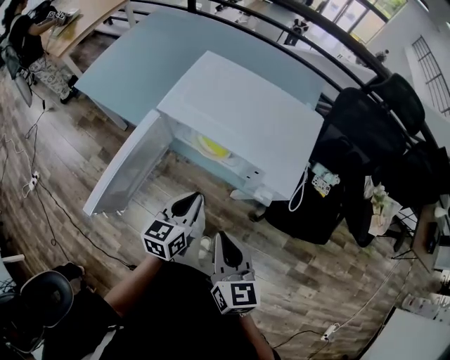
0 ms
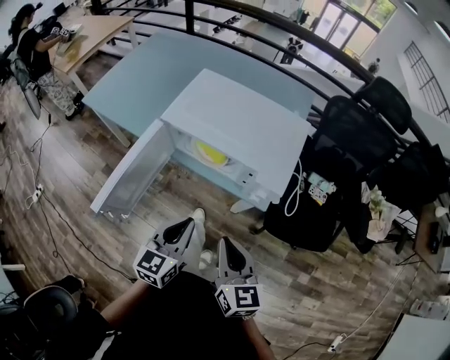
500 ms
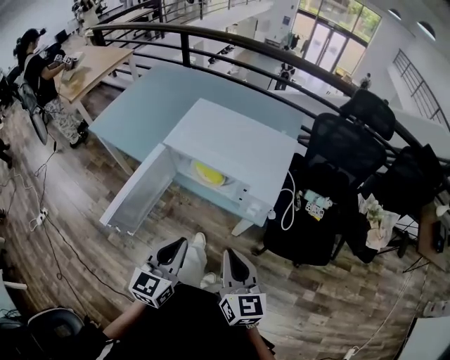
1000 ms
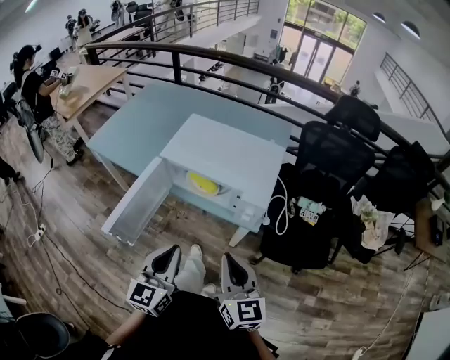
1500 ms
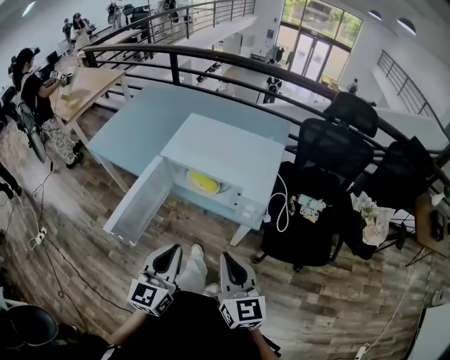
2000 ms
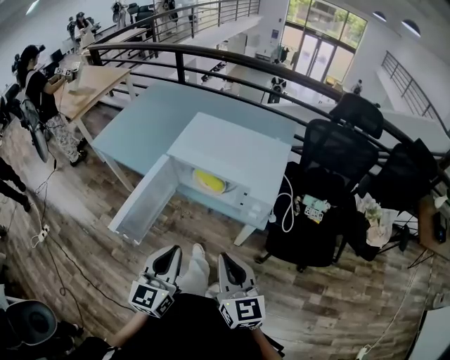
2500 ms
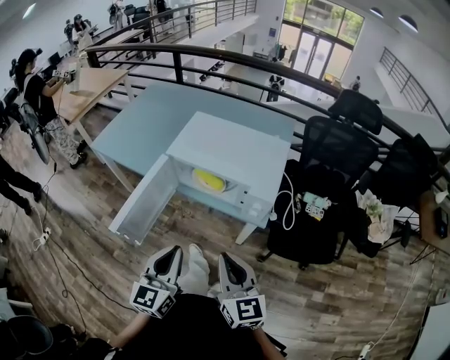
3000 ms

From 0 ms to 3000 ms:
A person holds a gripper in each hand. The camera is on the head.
From 0 ms to 1500 ms: The left gripper is displaced upward and backward by some 20 cm, and turns by about 20 degrees; the right gripper goes roughly 10 cm upward and backward.
From 1500 ms to 3000 ms: The grippers move only a little.

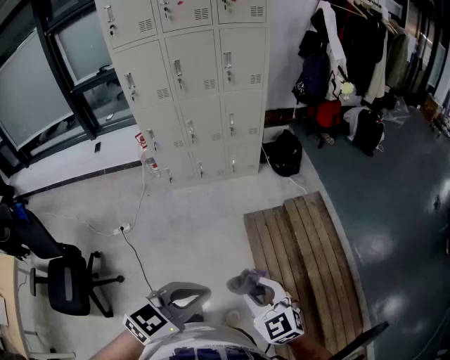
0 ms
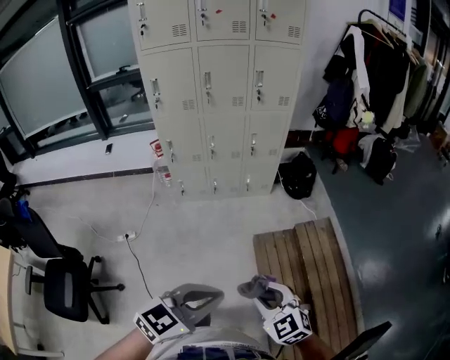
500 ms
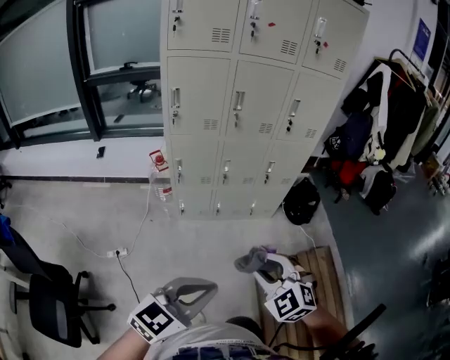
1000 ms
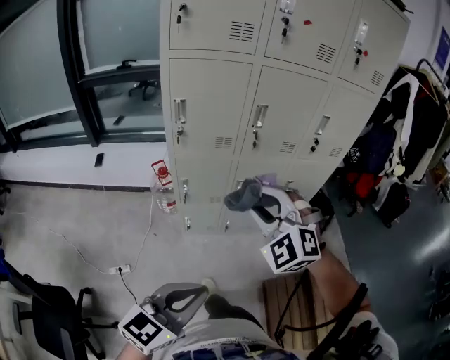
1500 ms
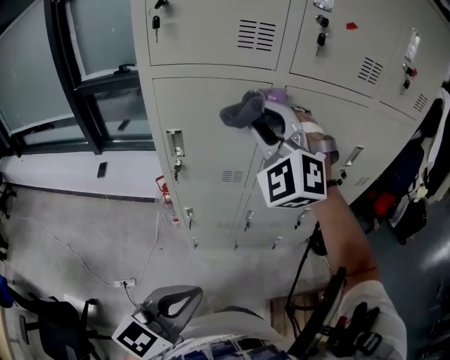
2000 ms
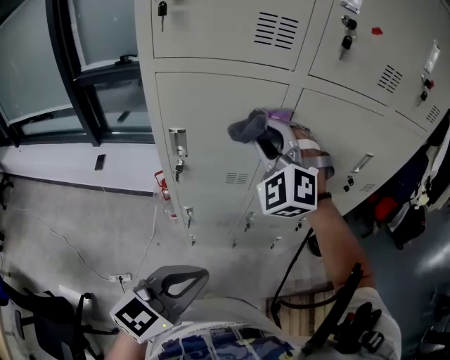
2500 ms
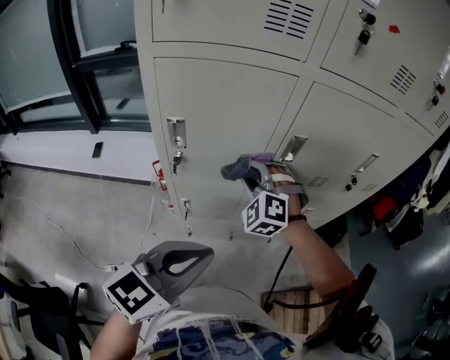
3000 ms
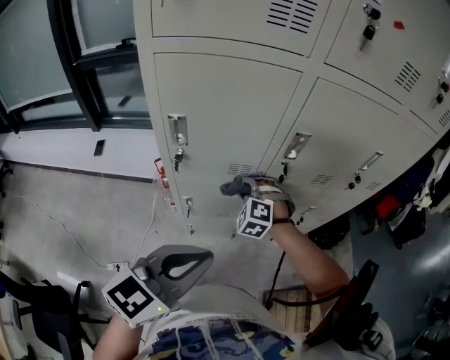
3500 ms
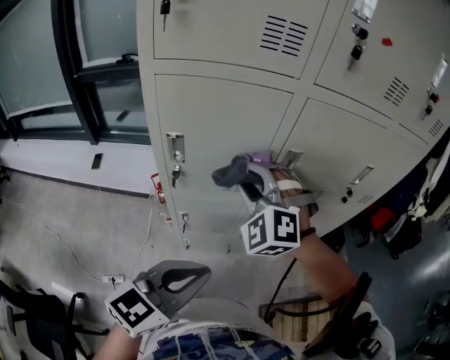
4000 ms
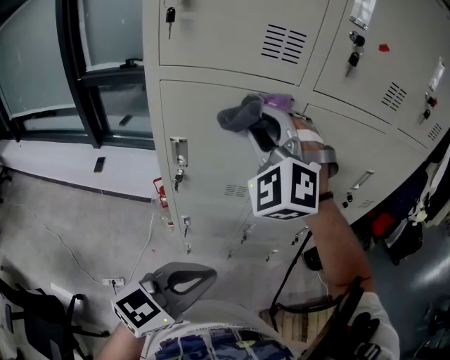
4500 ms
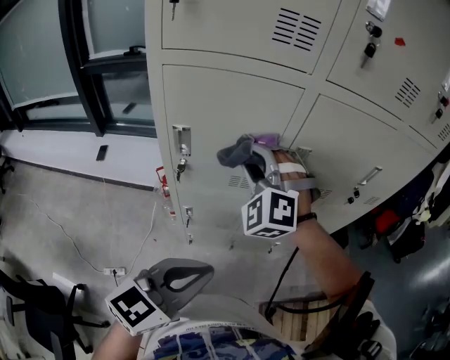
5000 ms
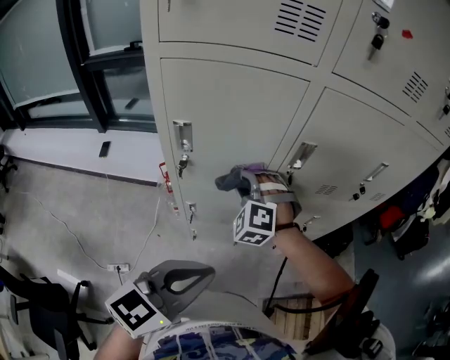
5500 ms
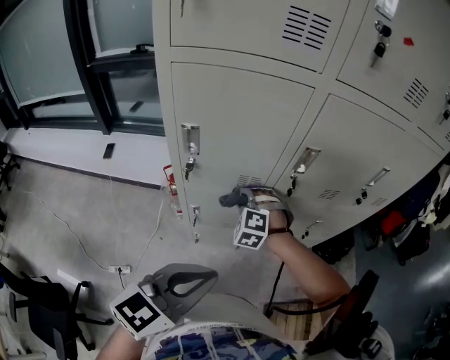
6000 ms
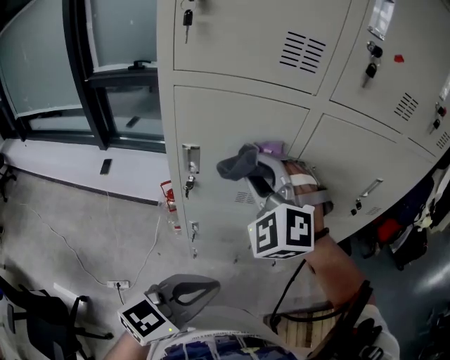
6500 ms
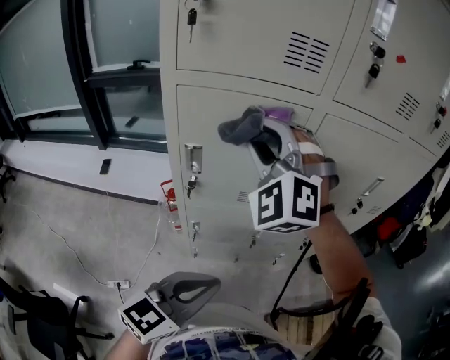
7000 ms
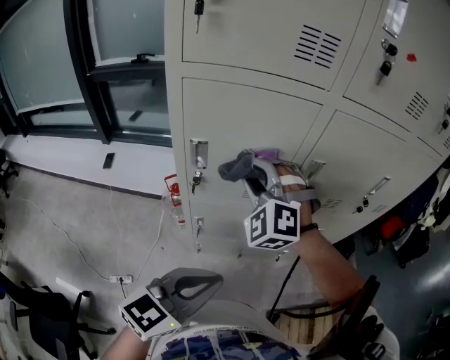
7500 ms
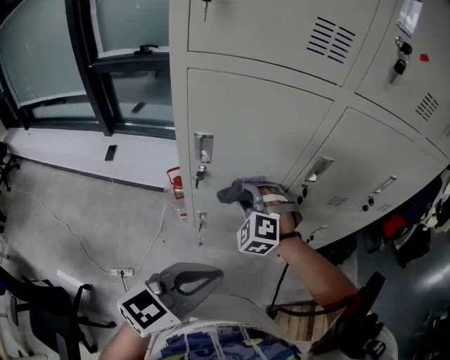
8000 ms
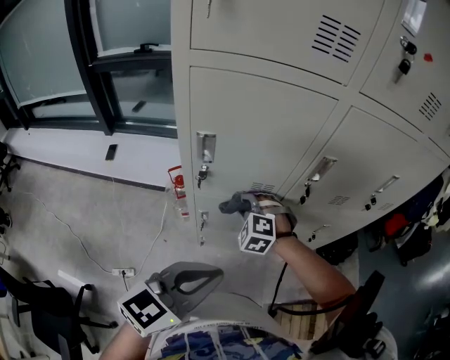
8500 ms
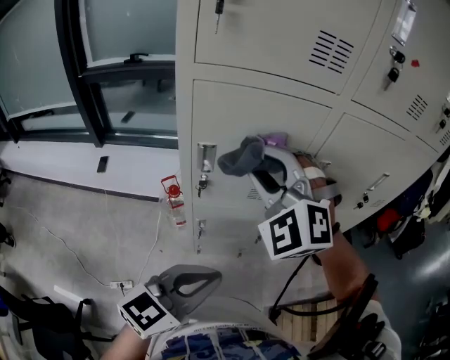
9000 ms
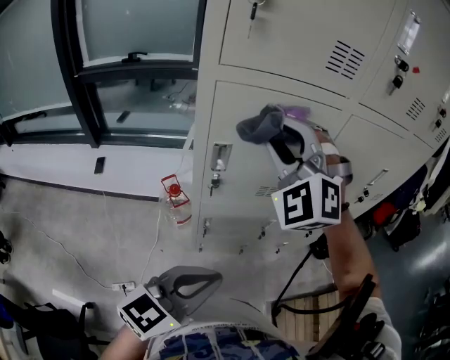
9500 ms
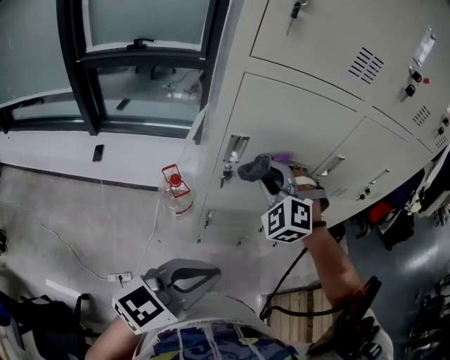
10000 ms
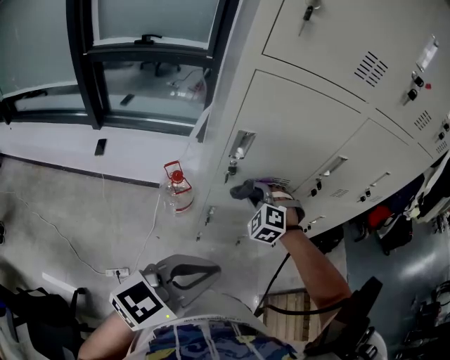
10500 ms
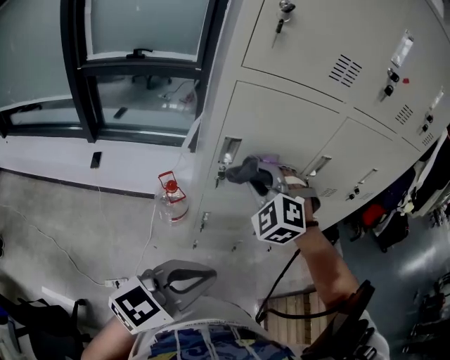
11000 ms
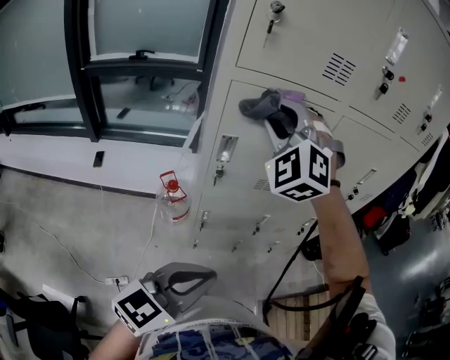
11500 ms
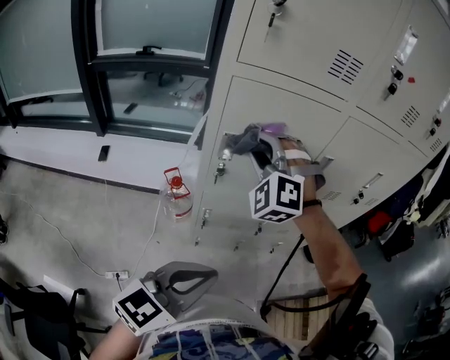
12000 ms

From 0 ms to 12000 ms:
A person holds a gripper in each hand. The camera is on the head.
From 0 ms to 2000 ms: The two grippers travel together, forward and to the left, some 80 cm. The right gripper heads upward, covering approximately 35 cm, and rolls counterclockwise, seen from behind, by about 60 degrees. Meanwhile the left gripper changes its angle by approximately 30 degrees.
From 2000 ms to 4000 ms: The left gripper goes some 10 cm forward, while the right gripper shifts some 15 cm downward.
From 4000 ms to 6000 ms: The right gripper moves downward, approximately 25 cm, and swivels about 20 degrees.
From 6000 ms to 8000 ms: The right gripper travels upward and back again, approximately 35 cm each way.
From 8000 ms to 10000 ms: The left gripper moves to the left, about 10 cm; the right gripper goes up and down, approximately 35 cm each way, reversing 2 times.
From 10000 ms to 12000 ms: The right gripper moves up and down over approximately 35 cm, changing direction 2 times.

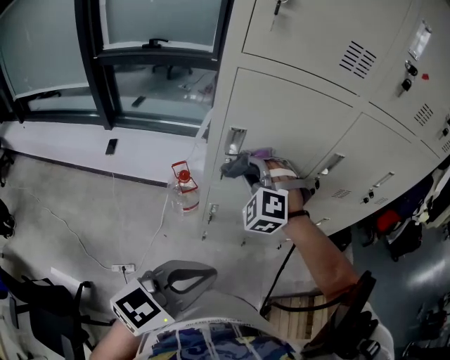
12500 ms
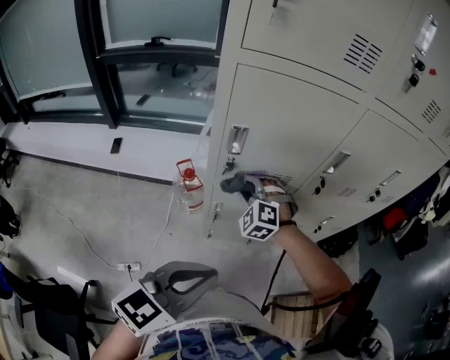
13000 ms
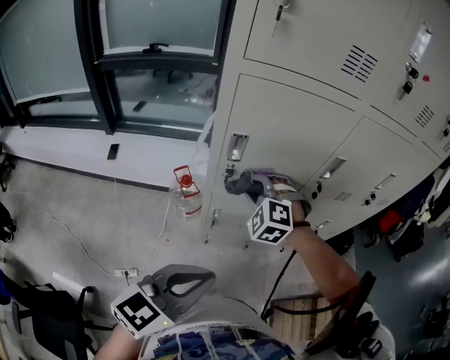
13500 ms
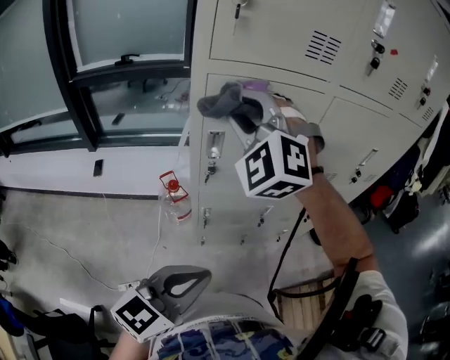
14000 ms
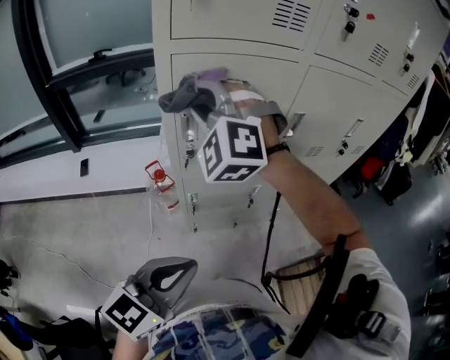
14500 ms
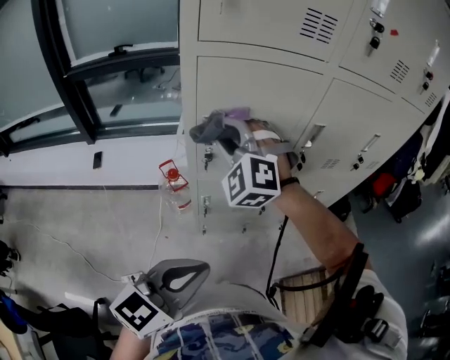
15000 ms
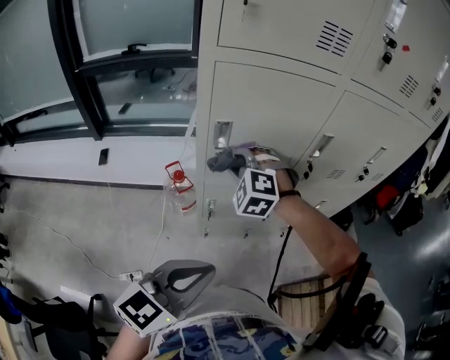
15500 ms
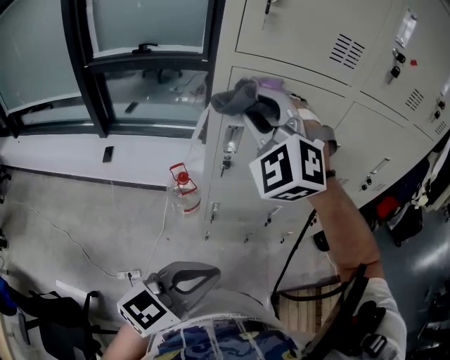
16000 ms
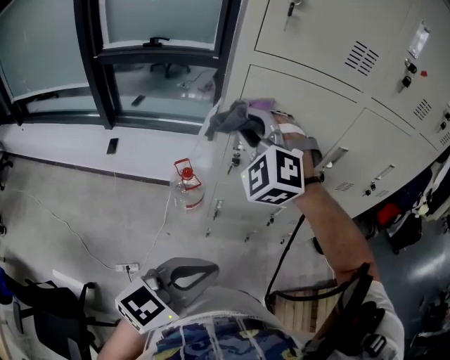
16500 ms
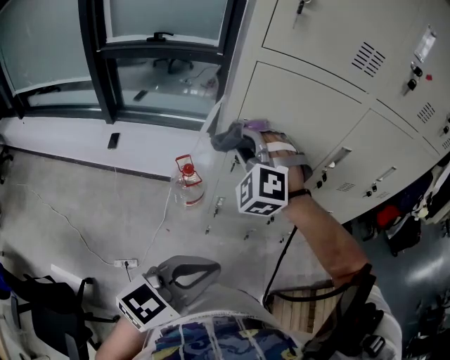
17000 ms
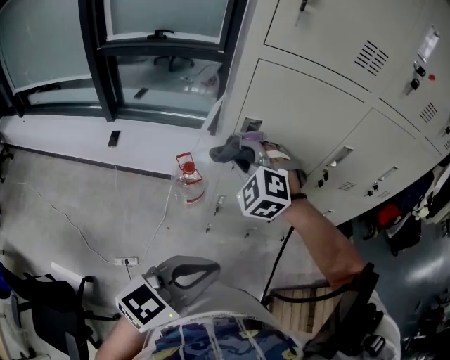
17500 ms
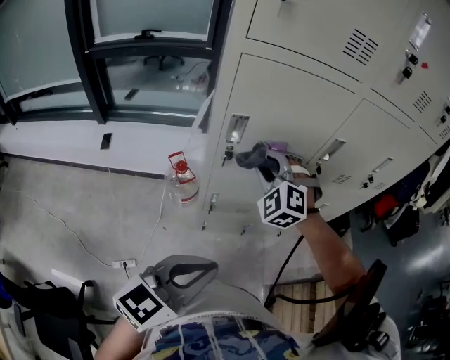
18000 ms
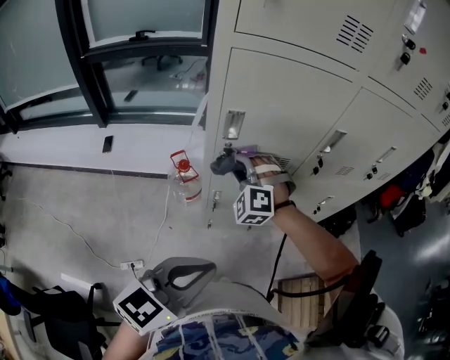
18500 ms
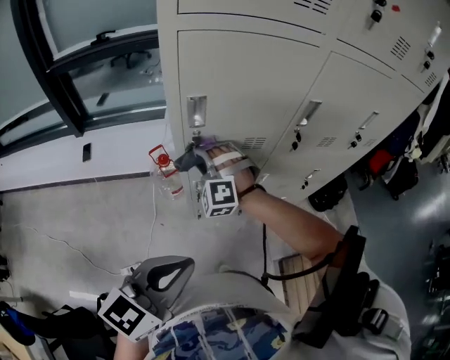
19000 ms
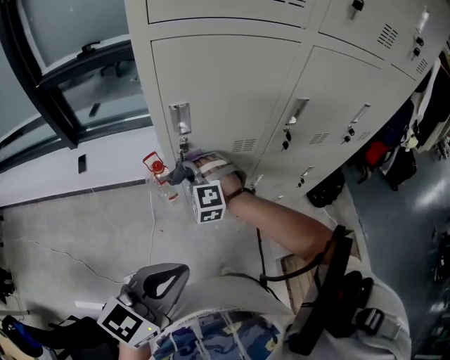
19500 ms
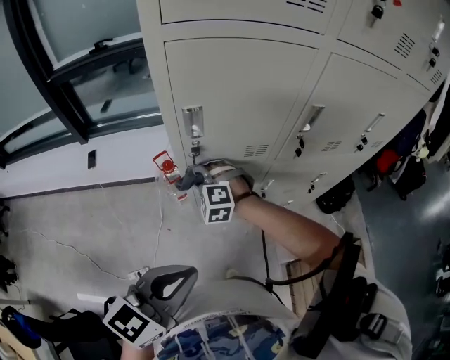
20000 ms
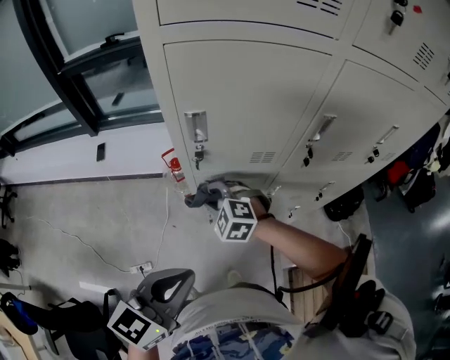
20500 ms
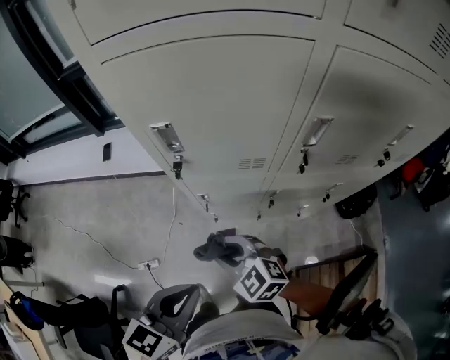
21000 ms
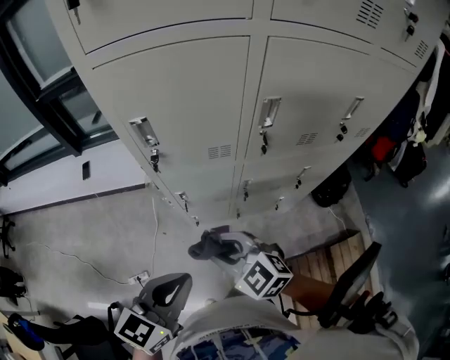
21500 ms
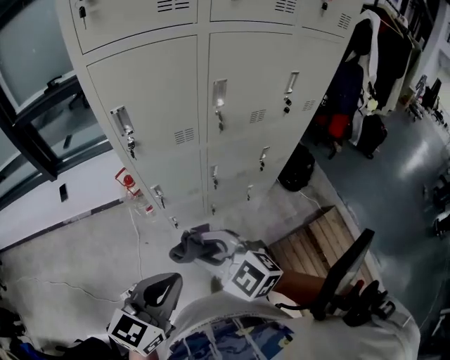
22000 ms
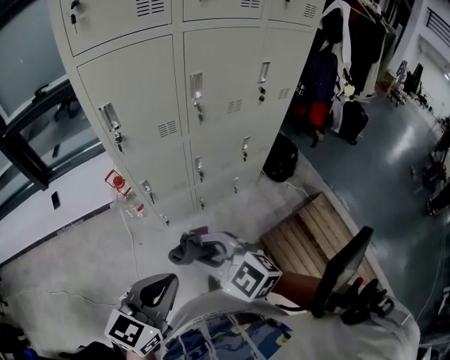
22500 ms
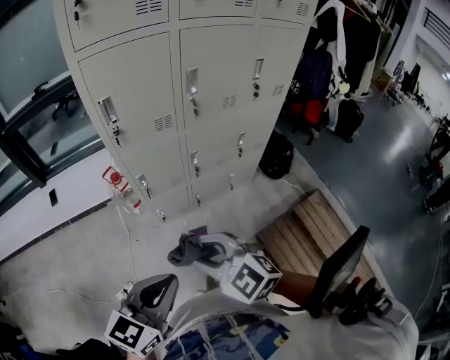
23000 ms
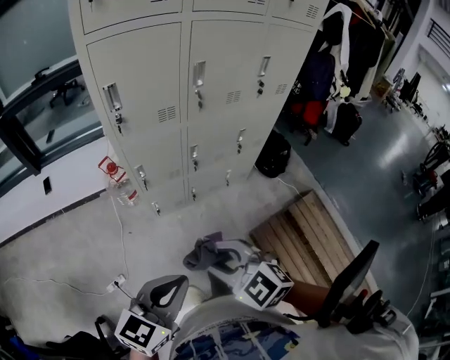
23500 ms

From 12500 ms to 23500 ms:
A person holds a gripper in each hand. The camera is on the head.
From 12500 ms to 14500 ms: The right gripper goes up and down, some 35 cm each way, reversing 2 times.
From 14500 ms to 16000 ms: The right gripper goes downward and returns, about 20 cm each way.
From 16000 ms to 18000 ms: The right gripper travels downward by approximately 20 cm, and turns by about 20 degrees.
From 18000 ms to 20000 ms: The right gripper goes roughly 20 cm downward and to the left, and rotates some 20 degrees.
From 20000 ms to 21500 ms: The right gripper goes roughly 25 cm backward and to the right, and swivels about 50 degrees; the left gripper goes approximately 5 cm to the right.
From 21500 ms to 23500 ms: The grippers both shift backward by roughly 20 cm.

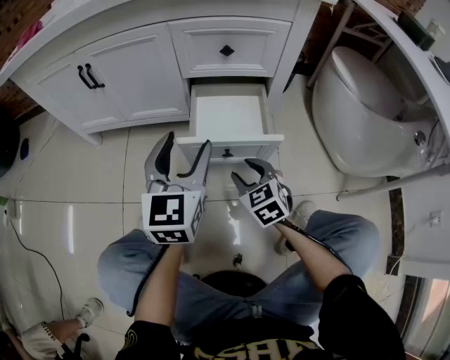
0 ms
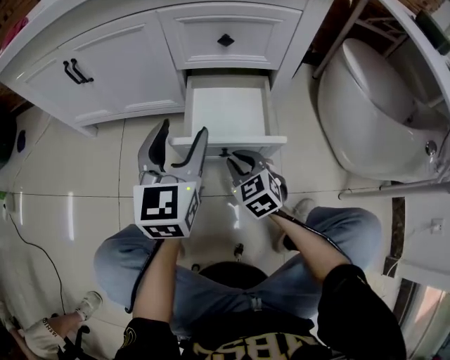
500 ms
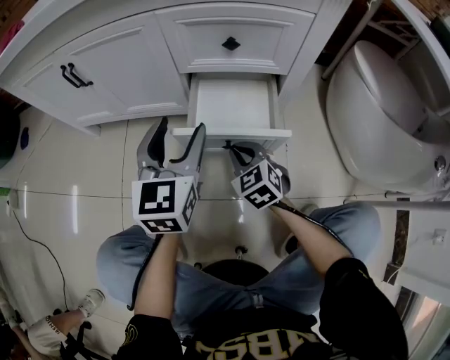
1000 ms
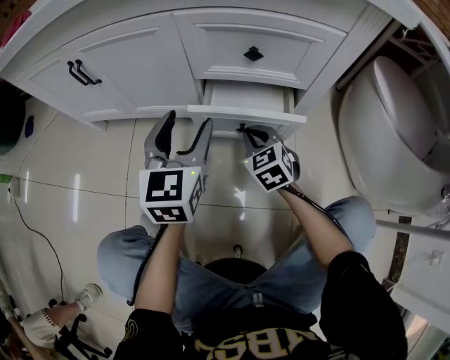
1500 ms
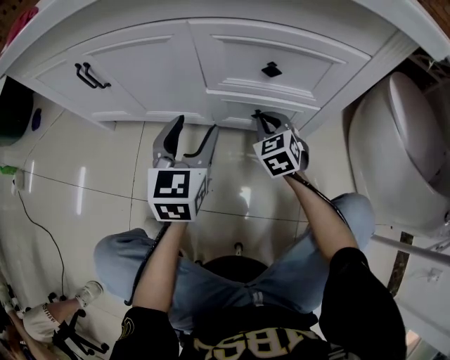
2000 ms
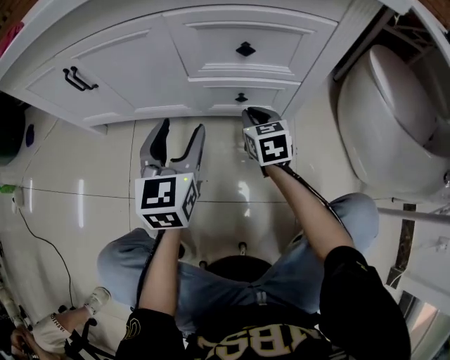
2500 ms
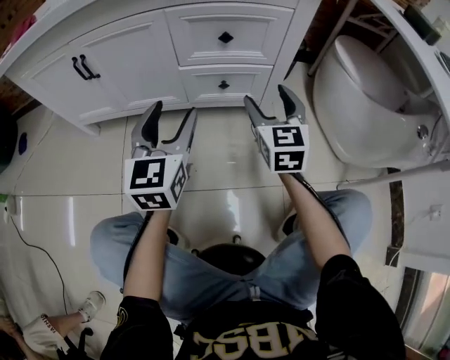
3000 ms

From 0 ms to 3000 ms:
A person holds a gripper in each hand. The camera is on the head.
From 0 ms to 1500 ms: The grippers both shift forward by about 15 cm. The right gripper closes up.
From 1500 ms to 3000 ms: The left gripper travels backward by roughly 10 cm, while the right gripper shifts some 20 cm upward, to the right and backward, changes its angle by some 40 degrees, and opens up.
